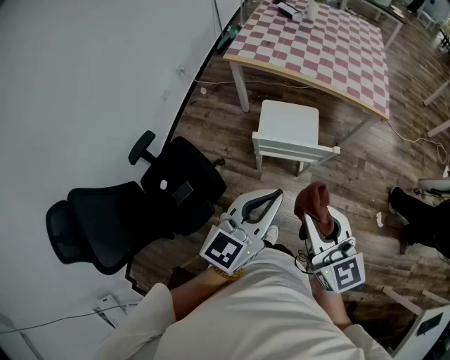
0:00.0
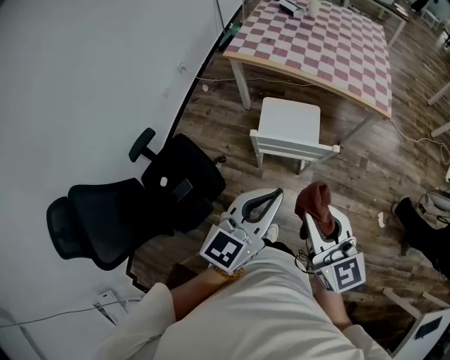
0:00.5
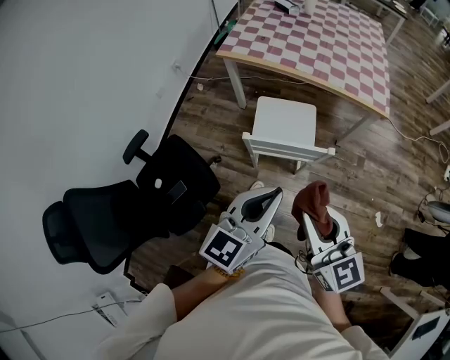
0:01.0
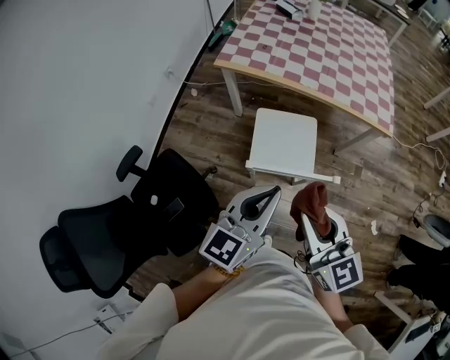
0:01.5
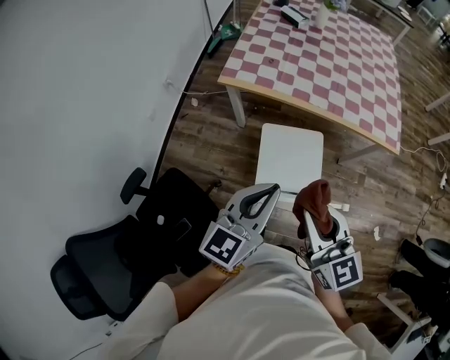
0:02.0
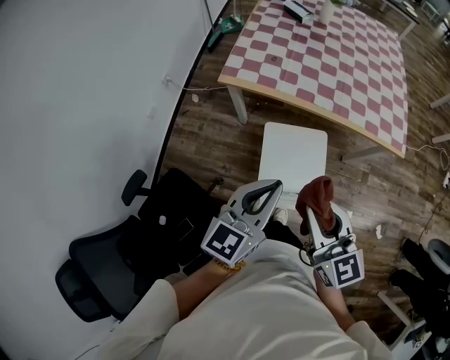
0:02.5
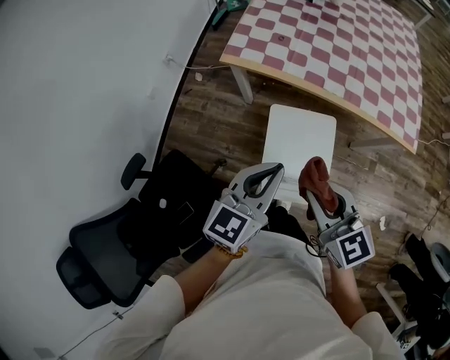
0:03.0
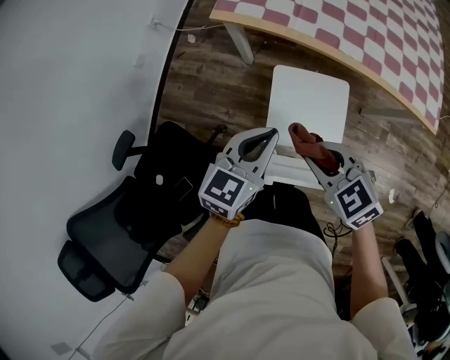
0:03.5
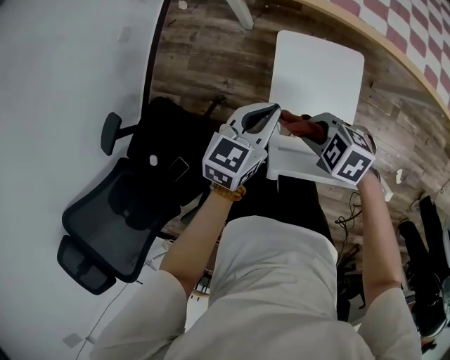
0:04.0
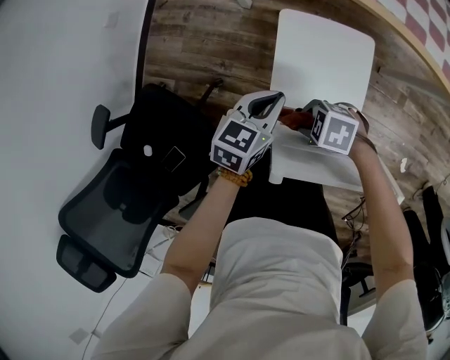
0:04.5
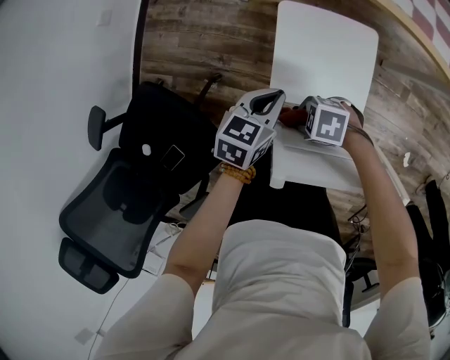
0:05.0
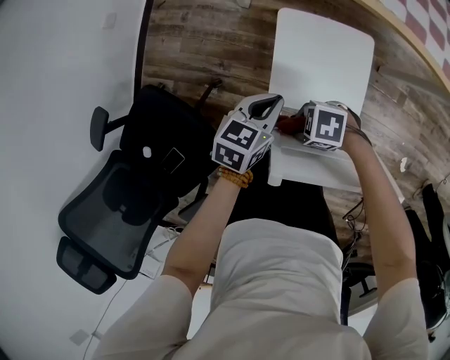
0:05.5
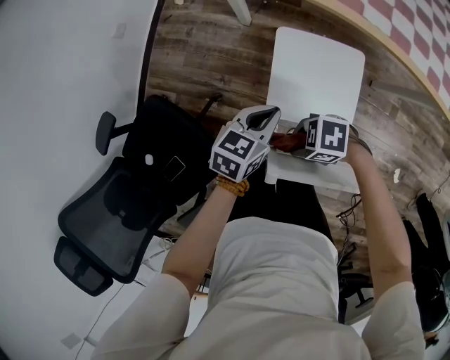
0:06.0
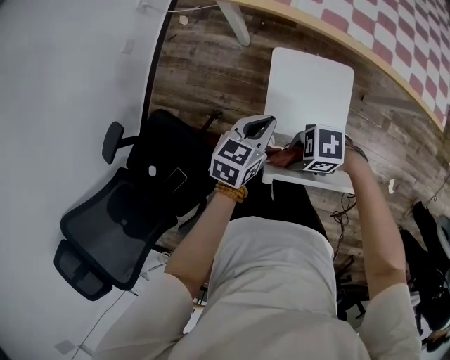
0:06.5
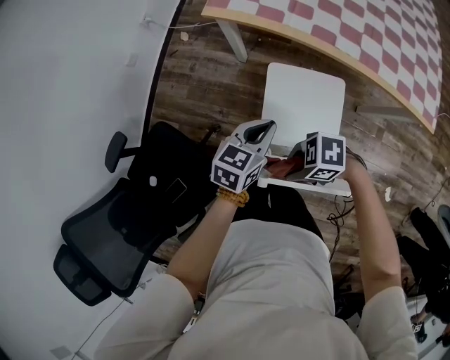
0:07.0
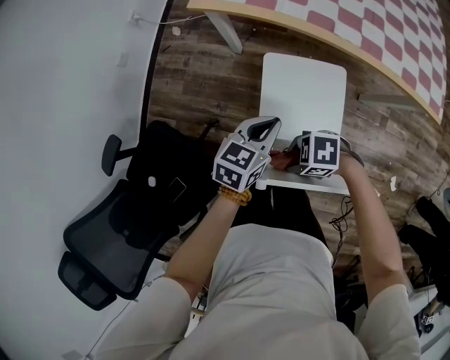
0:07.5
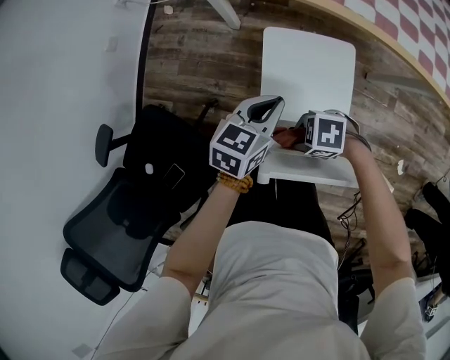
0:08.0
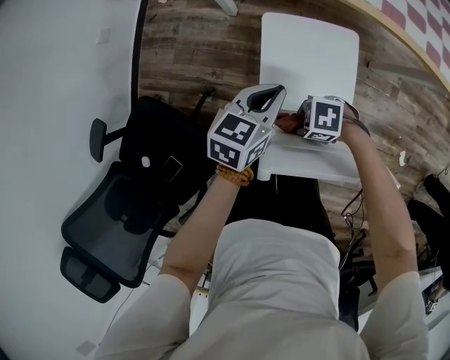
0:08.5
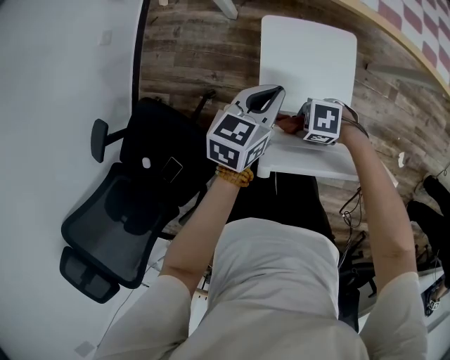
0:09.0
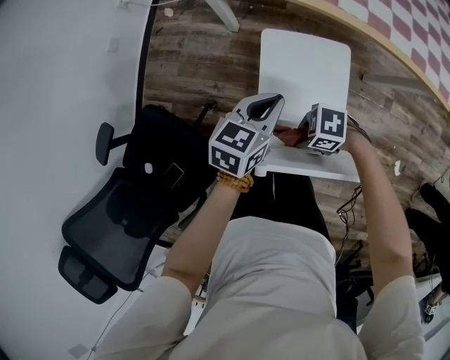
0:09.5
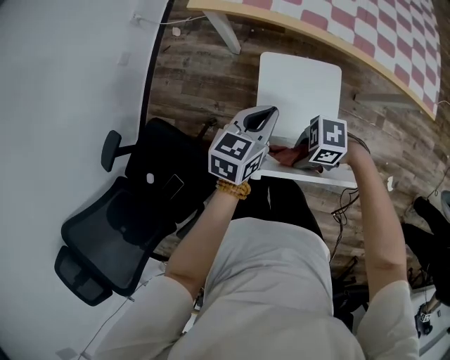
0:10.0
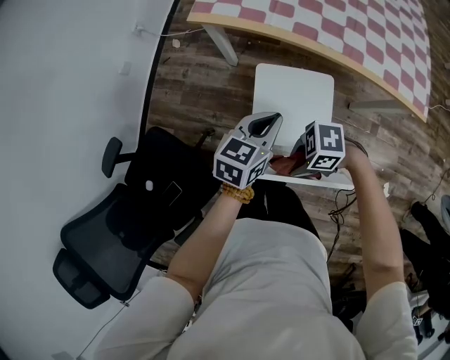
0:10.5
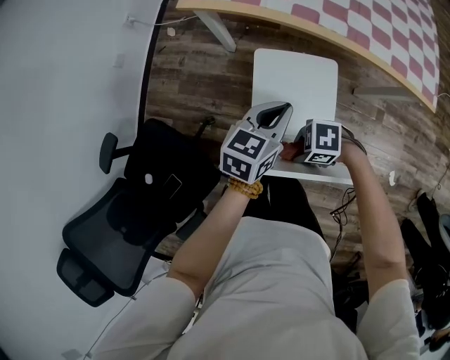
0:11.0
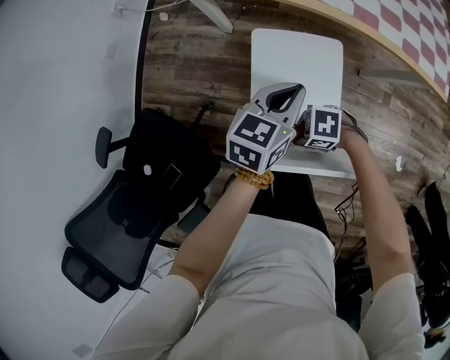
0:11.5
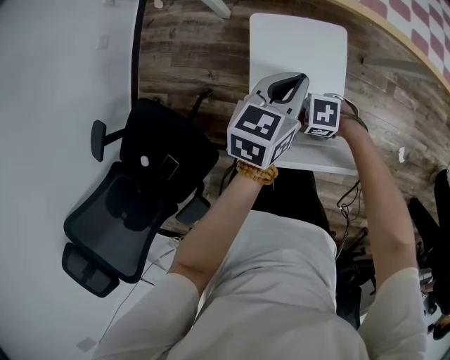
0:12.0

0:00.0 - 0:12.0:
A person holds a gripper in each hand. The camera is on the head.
0:00.0 - 0:02.0: Both grippers move forward, approximately 25 cm.
0:02.0 - 0:04.0: The grippers both shift downward by roughly 35 cm. The left gripper swivels roughly 20 degrees, while the right gripper tilts its fingers some 50 degrees downward.
0:04.0 - 0:06.0: The left gripper travels downward by approximately 5 cm. Meanwhile the right gripper goes downward and returns, approximately 15 cm each way, and swivels roughly 30 degrees.
0:06.0 - 0:08.0: The left gripper travels upward and back again, about 10 cm each way. Meanwhile the right gripper goes upward and returns, some 10 cm each way.
0:08.0 - 0:10.0: Both grippers travel together upward, about 10 cm.
0:10.0 - 0:12.0: The right gripper moves downward, some 15 cm. Meanwhile the left gripper moves approximately 10 cm.

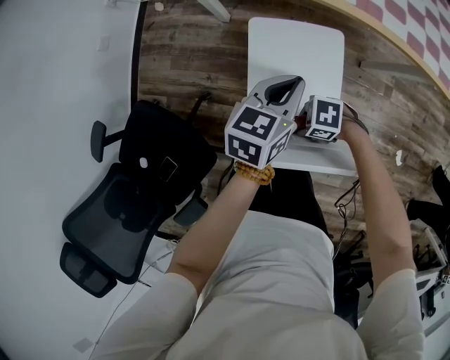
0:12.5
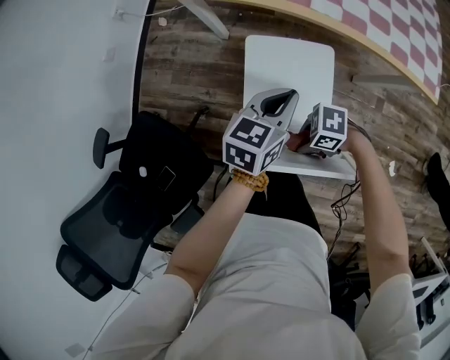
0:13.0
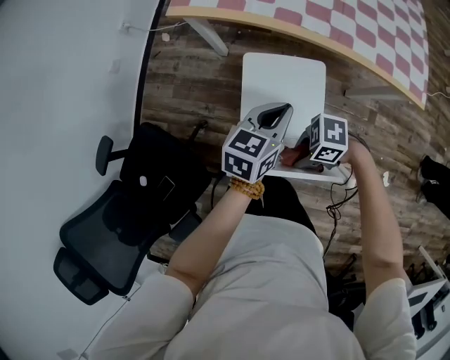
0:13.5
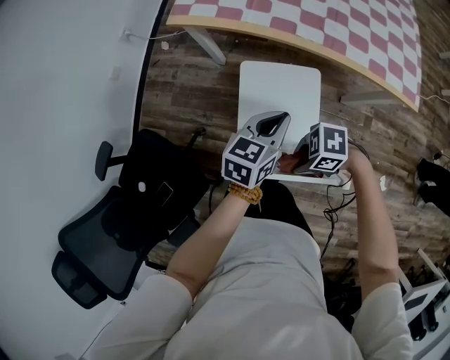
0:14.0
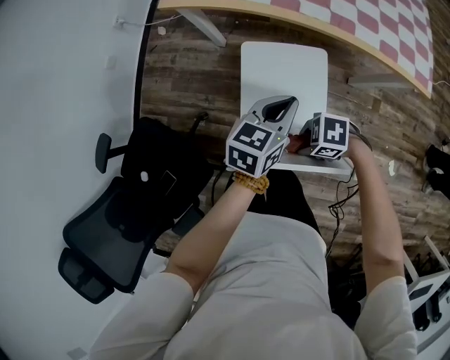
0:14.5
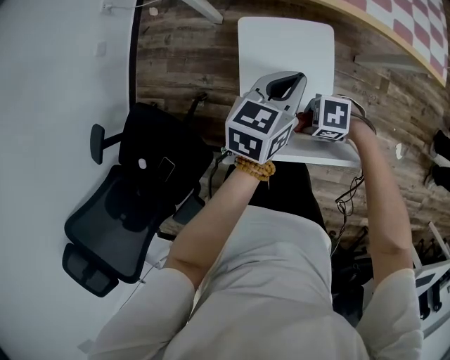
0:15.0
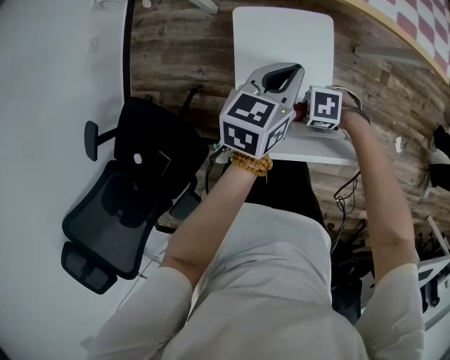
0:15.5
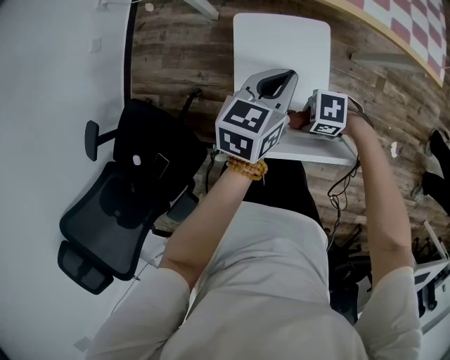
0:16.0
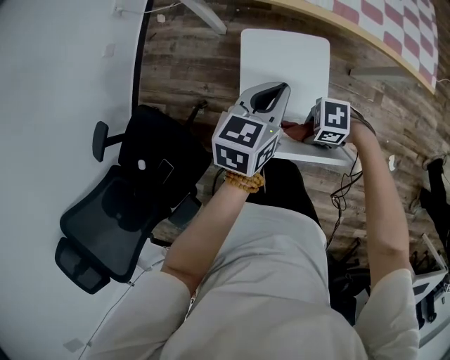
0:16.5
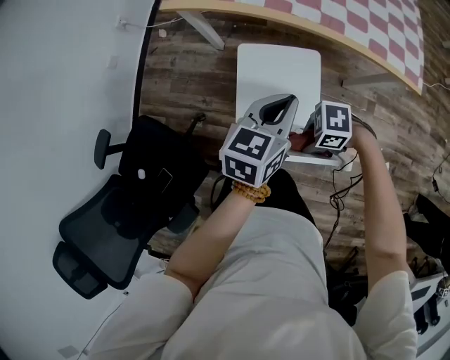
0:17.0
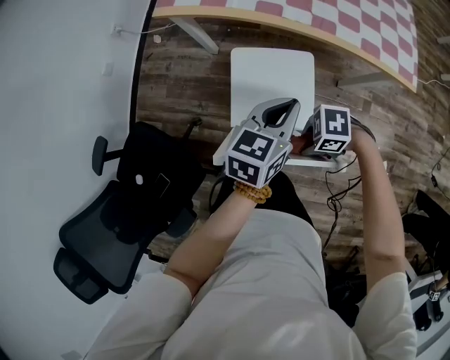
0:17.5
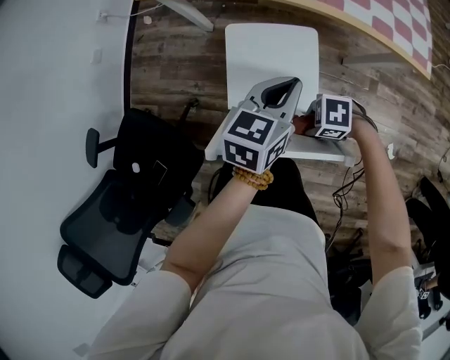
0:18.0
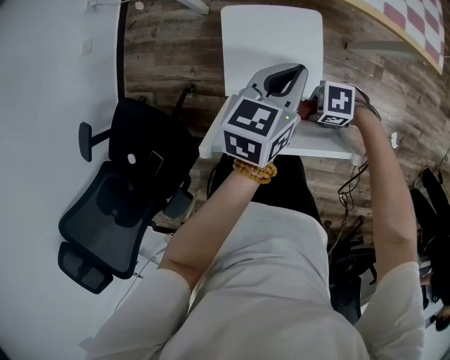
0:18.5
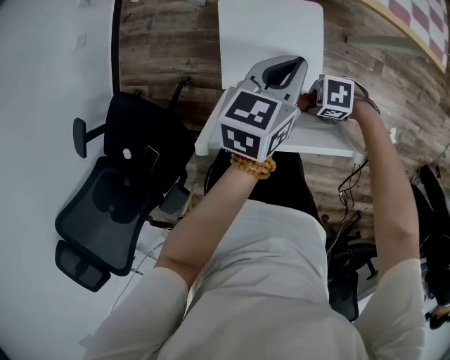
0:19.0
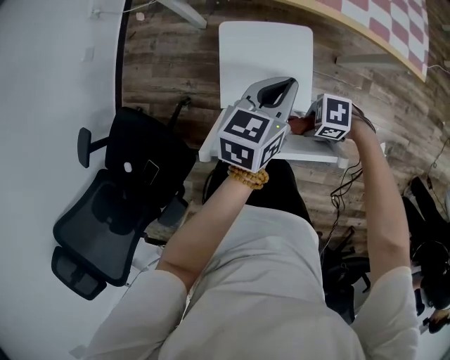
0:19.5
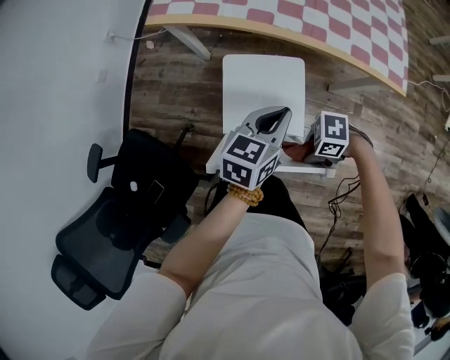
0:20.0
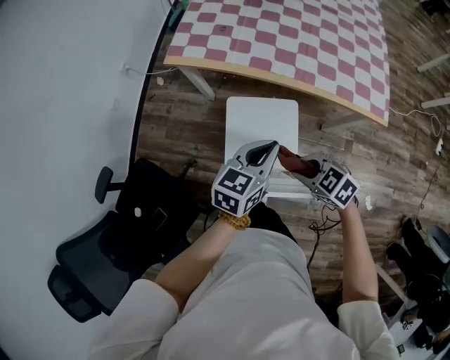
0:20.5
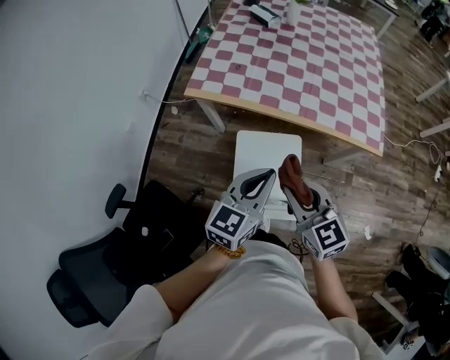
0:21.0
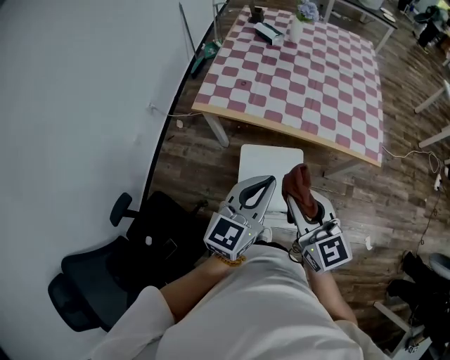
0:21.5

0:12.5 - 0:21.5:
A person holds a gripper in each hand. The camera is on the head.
0:12.5 - 0:14.5: The left gripper ends up roughly 5 cm from where it was, while the right gripper heads upward, covering roughly 10 cm.
0:14.5 - 0:17.0: The left gripper heads upward, covering some 5 cm, while the right gripper reaches approximately 10 cm downward, then returns.
0:17.0 - 0:19.5: The grippers both shift downward by about 5 cm.
0:19.5 - 0:21.5: The right gripper moves upward, about 40 cm, and points its fingers some 40 degrees further upward, while the left gripper heads upward, covering approximately 30 cm, and rotates roughly 30 degrees.

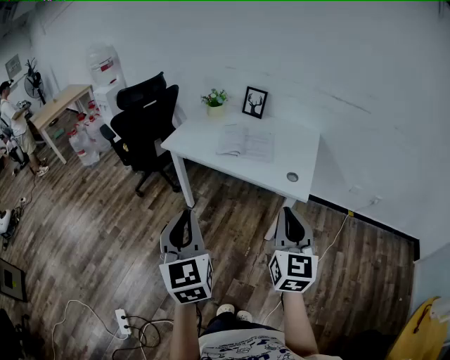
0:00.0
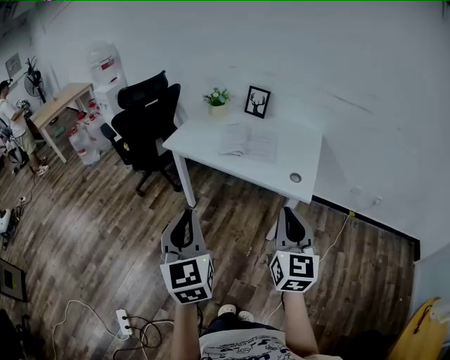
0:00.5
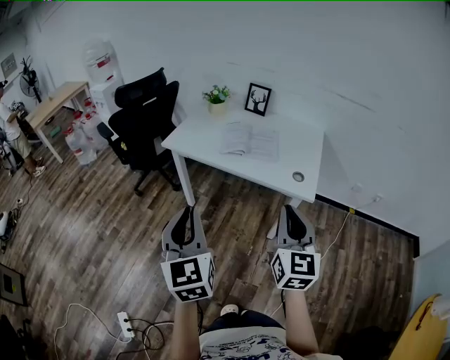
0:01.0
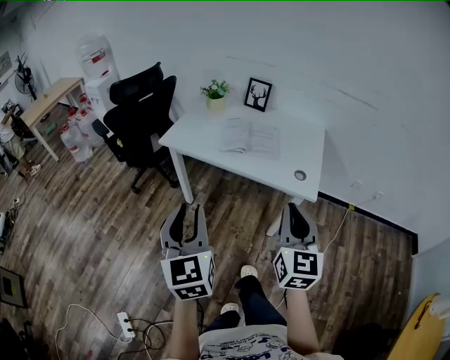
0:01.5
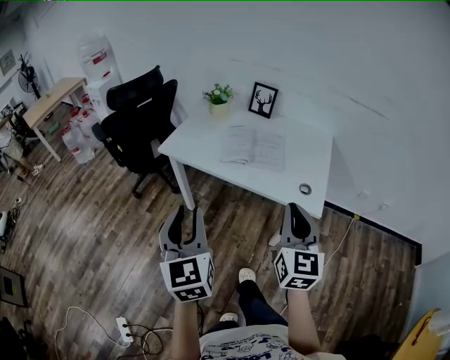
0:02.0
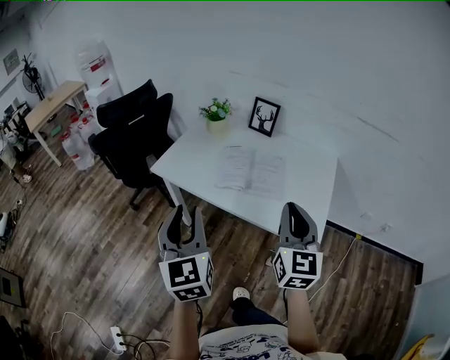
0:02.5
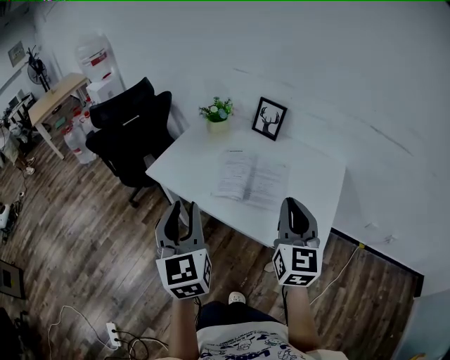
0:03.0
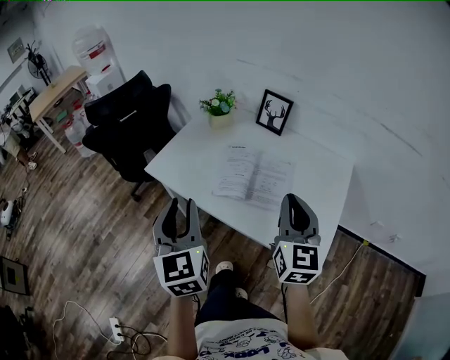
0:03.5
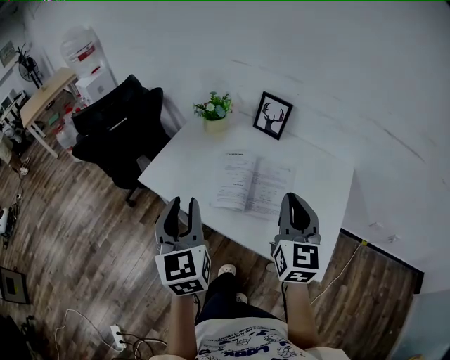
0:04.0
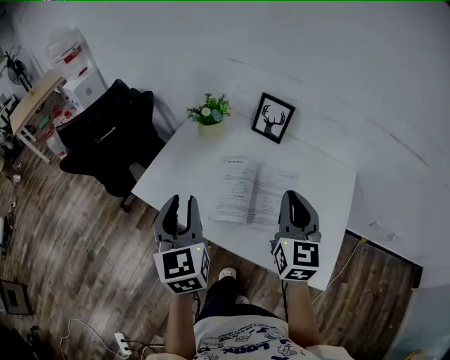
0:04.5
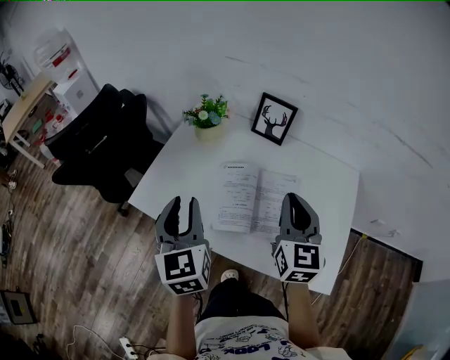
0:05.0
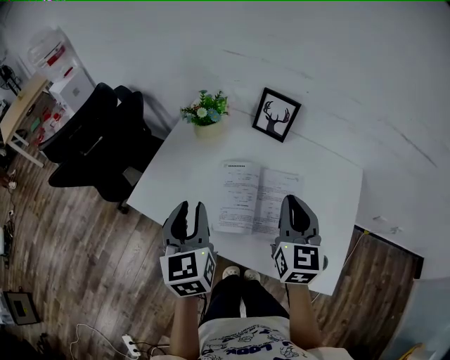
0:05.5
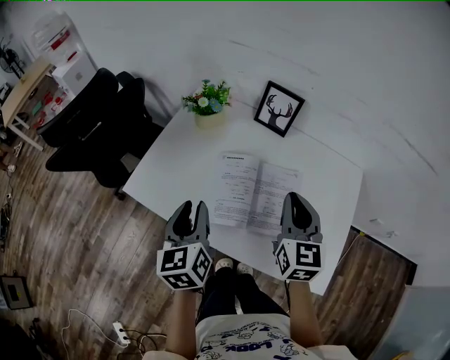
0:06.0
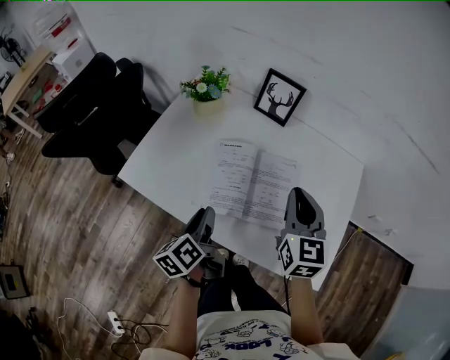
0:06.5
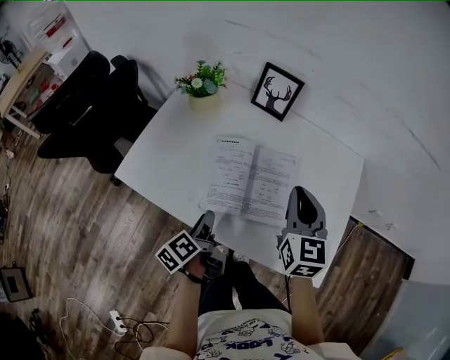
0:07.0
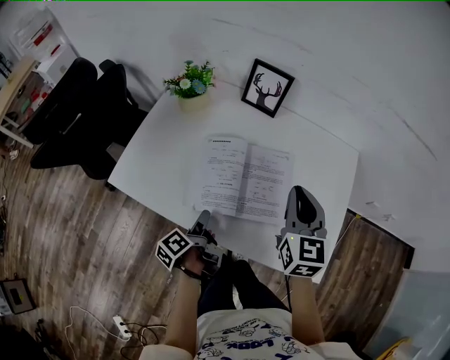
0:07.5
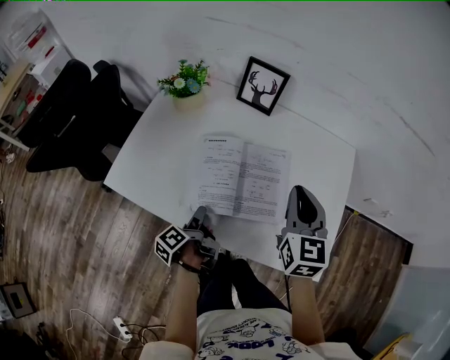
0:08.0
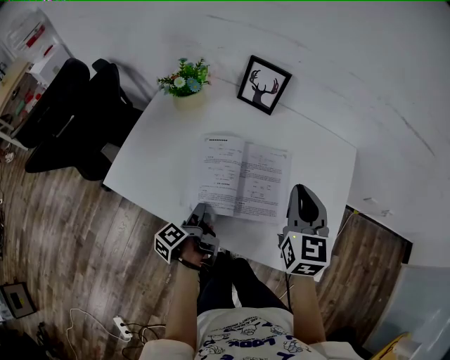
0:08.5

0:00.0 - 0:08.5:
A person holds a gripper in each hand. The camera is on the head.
0:00.0 - 0:02.0: Both grippers move forward, roughly 15 cm.
0:02.0 - 0:04.0: The grippers both shift forward by about 30 cm.
0:04.0 - 0:06.5: The left gripper travels downward and forward by roughly 25 cm, and twists approximately 50 degrees counterclockwise, seen from behind. The right gripper goes some 15 cm forward and downward.
0:06.5 - 0:08.5: The left gripper shifts roughly 10 cm downward, and swivels about 40 degrees.
